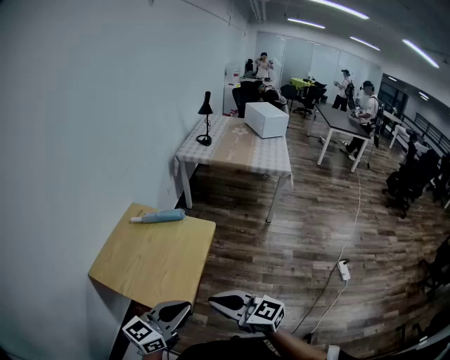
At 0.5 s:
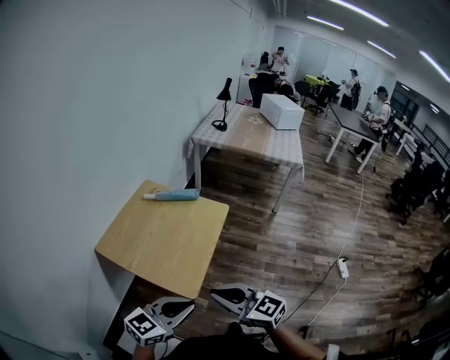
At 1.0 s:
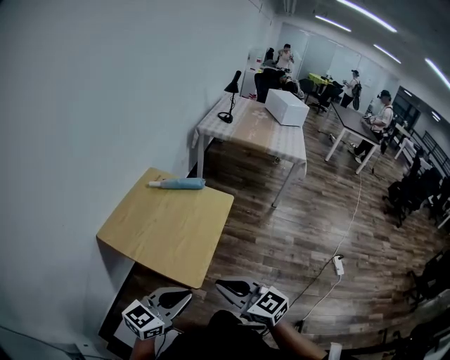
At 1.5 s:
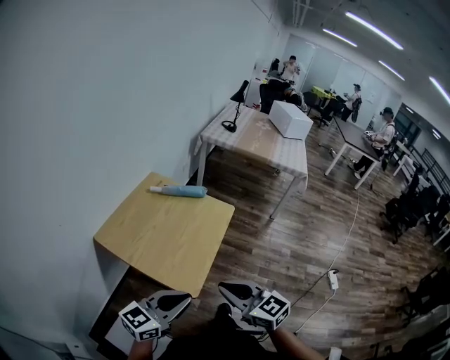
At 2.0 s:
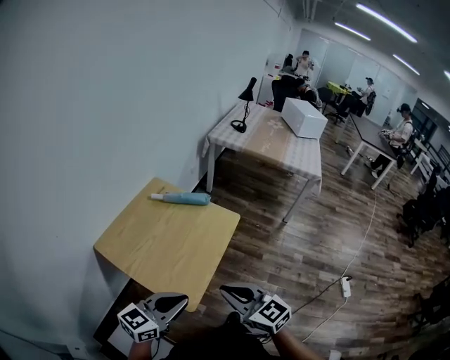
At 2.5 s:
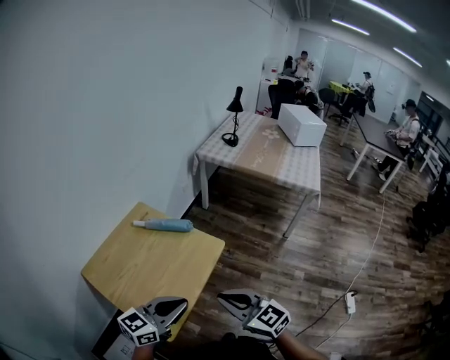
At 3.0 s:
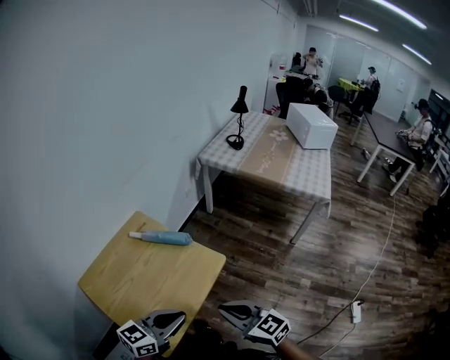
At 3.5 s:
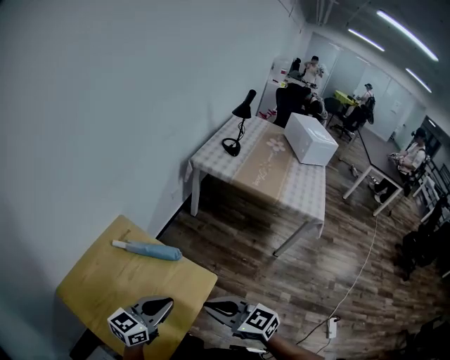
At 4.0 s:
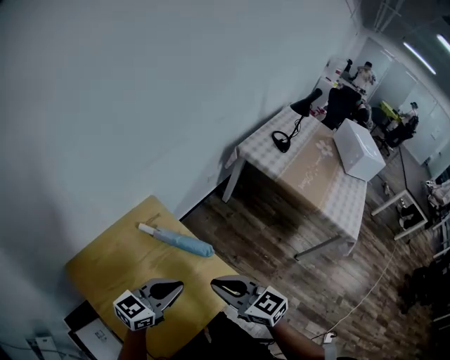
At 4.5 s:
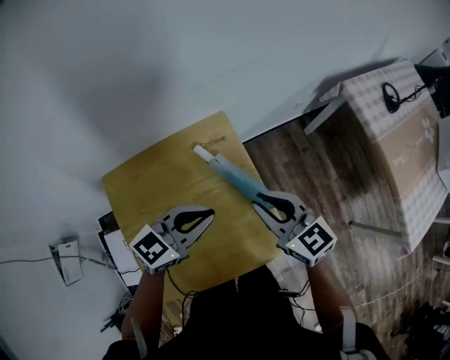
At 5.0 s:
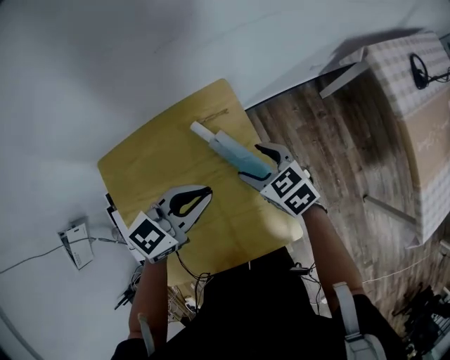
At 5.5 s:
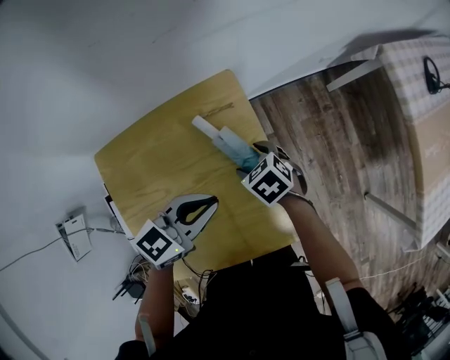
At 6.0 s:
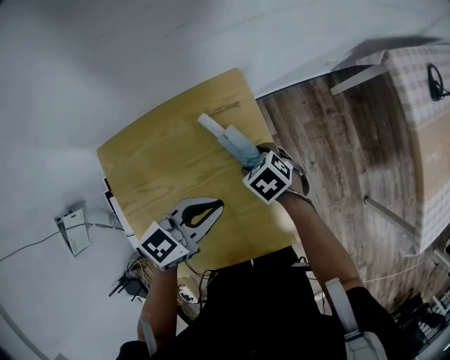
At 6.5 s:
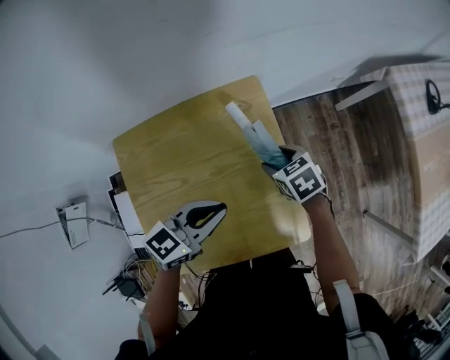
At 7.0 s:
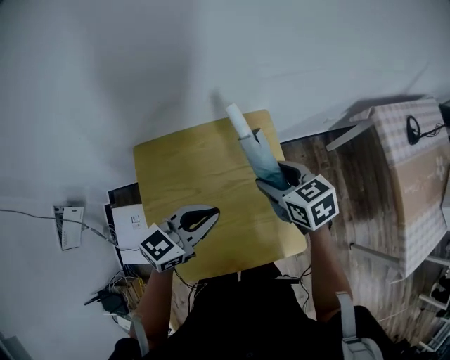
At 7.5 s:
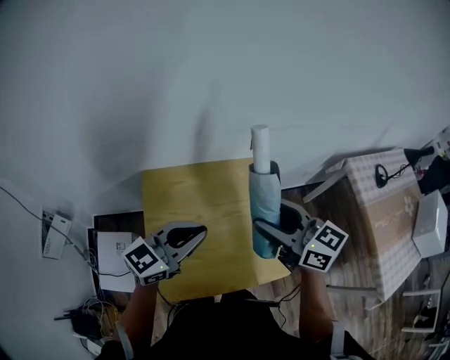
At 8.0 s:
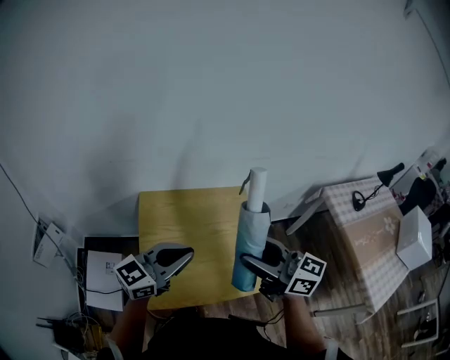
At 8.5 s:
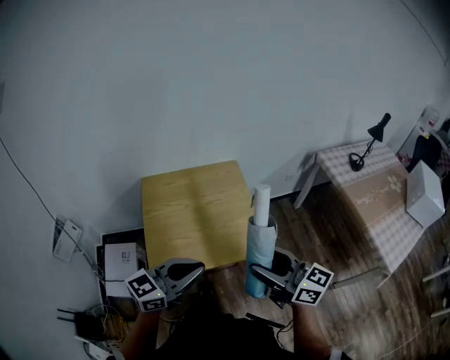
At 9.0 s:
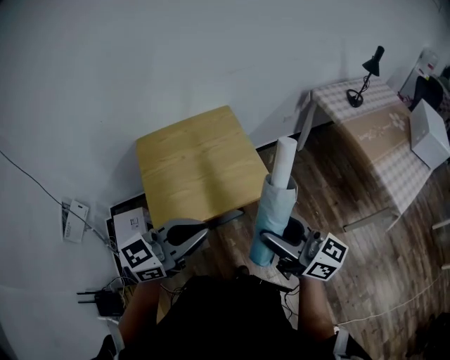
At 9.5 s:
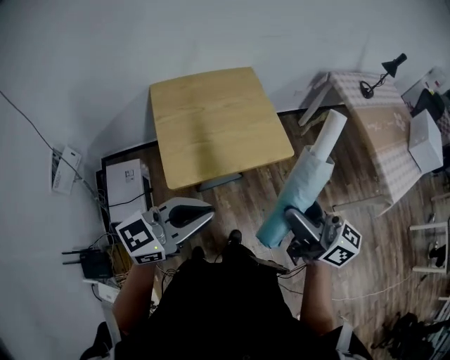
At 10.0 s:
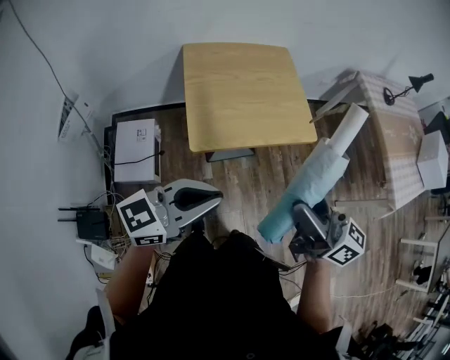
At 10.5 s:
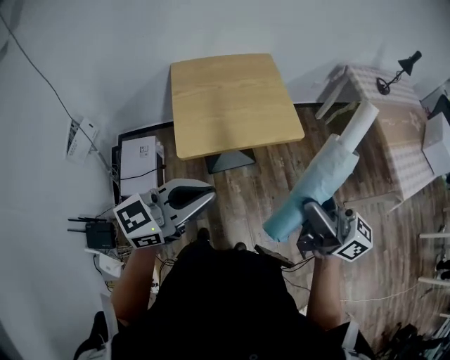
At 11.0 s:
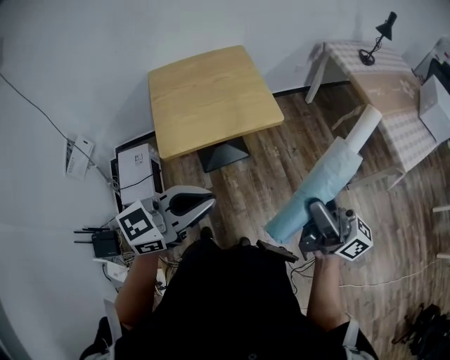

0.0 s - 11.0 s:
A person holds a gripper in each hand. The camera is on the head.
0.0 s - 2.0 s: The left gripper heads to the left and downward, covering about 10 cm, while the right gripper travels forward by some 5 cm.
2.0 s - 3.5 s: The grippers both shift forward by roughly 30 cm.
3.5 s - 5.5 s: The left gripper changes place by some 25 cm, and rotates about 30 degrees. Meanwhile the right gripper ends up about 50 cm from where it was, angles its fingers downward, by roughly 40 degrees, and opens its fingers.
5.5 s - 7.5 s: The right gripper heads upward, covering about 40 cm, and points its fingers approximately 50 degrees further upward. Meanwhile the left gripper moves some 30 cm, and swivels roughly 30 degrees.
7.5 s - 9.0 s: The right gripper goes some 40 cm backward, and turns by about 30 degrees; the left gripper is displaced backward and to the right by approximately 35 cm.
9.0 s - 11.0 s: The grippers both shift backward by approximately 20 cm. The right gripper travels to the left and back again, some 15 cm each way, and changes its angle by about 20 degrees.

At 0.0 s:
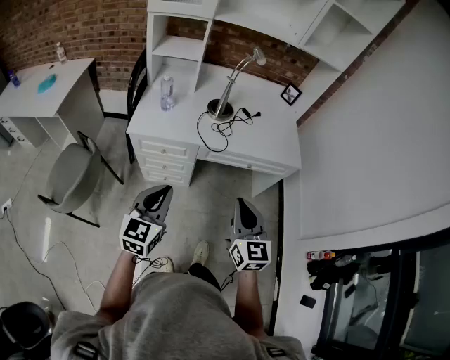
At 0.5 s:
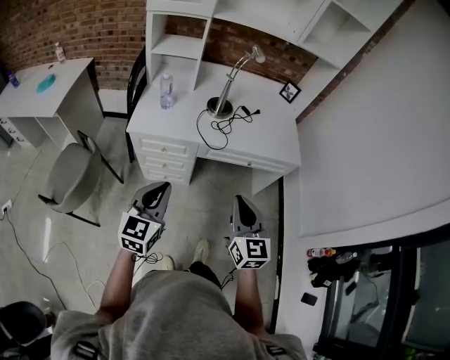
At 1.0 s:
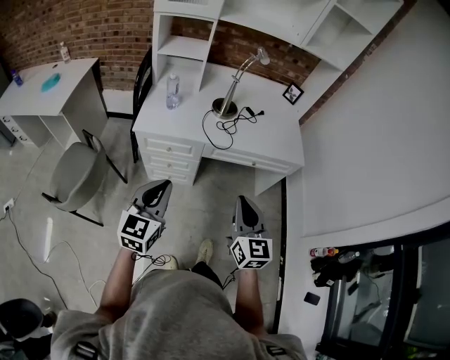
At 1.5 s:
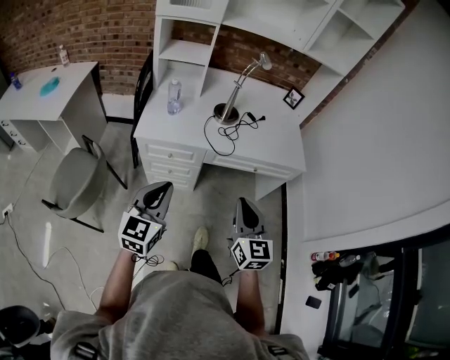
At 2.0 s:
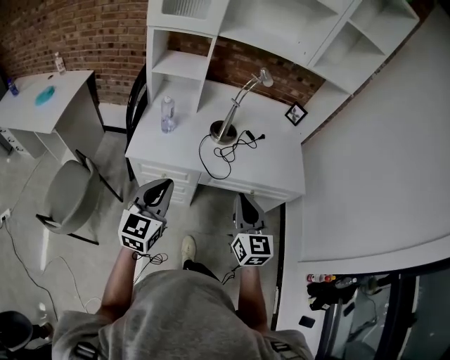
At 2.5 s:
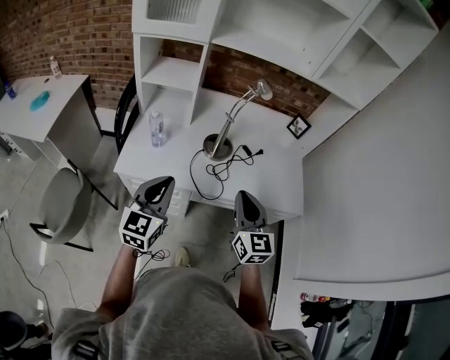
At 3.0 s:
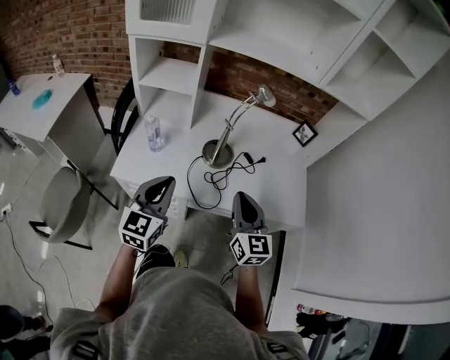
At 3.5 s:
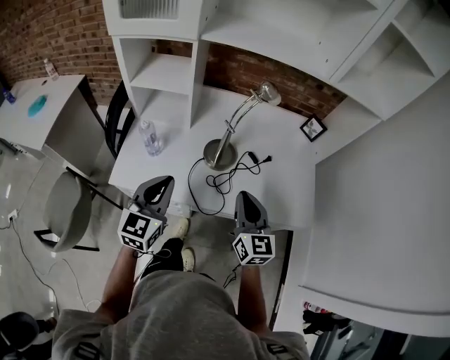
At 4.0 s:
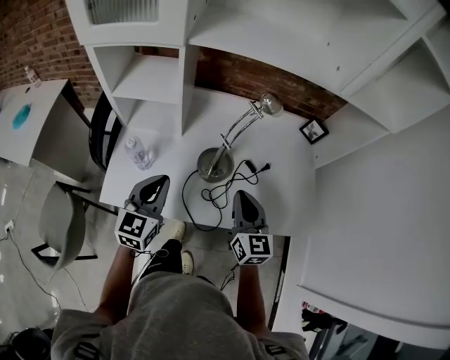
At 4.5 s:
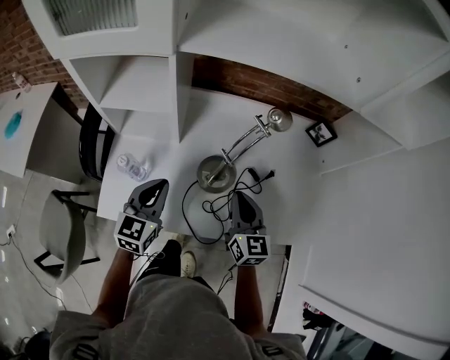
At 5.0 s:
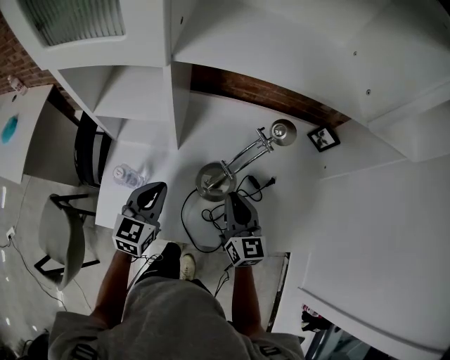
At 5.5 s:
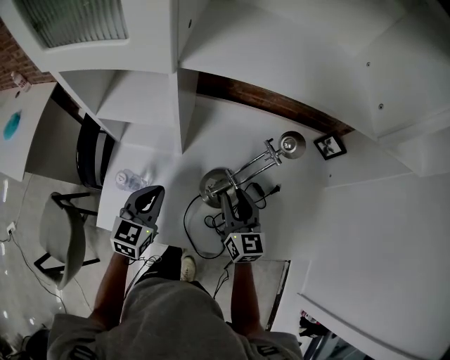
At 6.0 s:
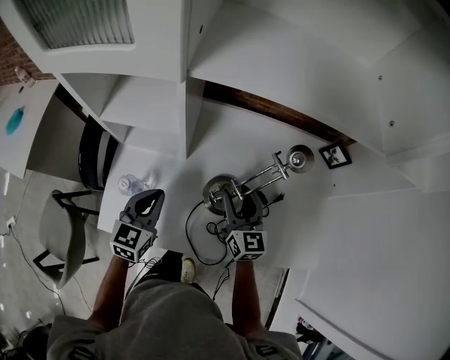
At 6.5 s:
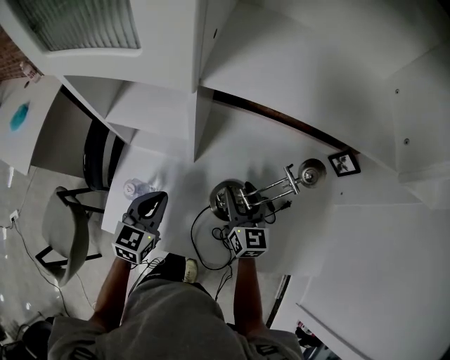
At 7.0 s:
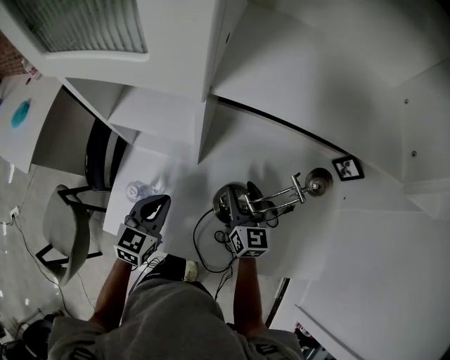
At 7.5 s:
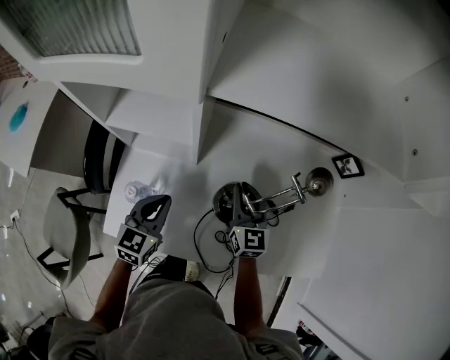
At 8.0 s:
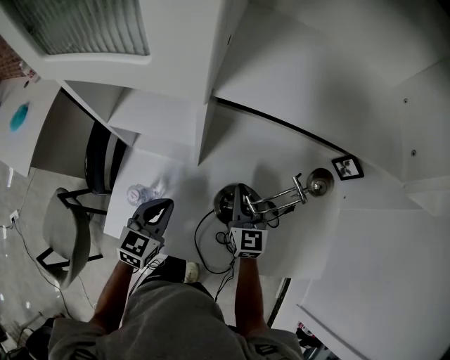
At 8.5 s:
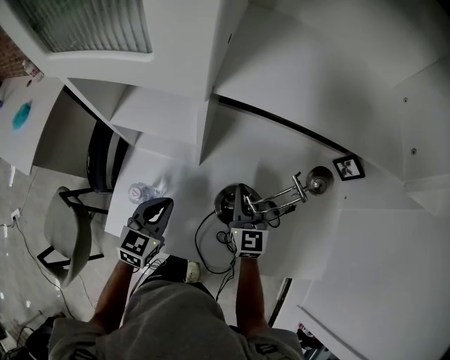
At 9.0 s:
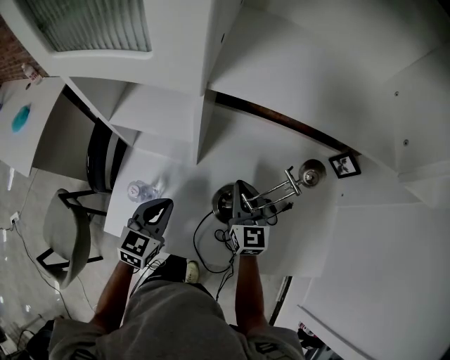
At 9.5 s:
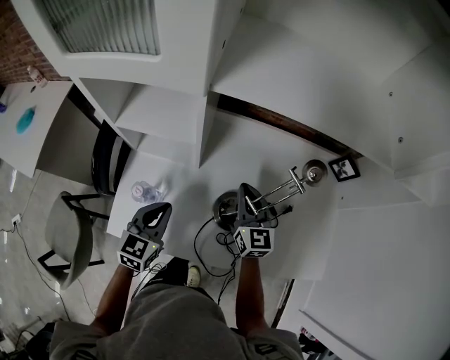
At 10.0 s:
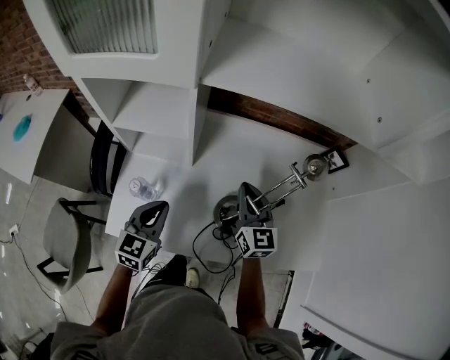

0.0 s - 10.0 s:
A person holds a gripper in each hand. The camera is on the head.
0.0 s - 2.0 s: Both grippers travel together forward, about 15 cm.
2.0 s - 4.0 s: The two grippers go roughly 30 cm forward.
4.0 s - 6.0 s: Both grippers travel together forward and downward, about 15 cm. The right gripper opens its fingers.
6.0 s - 8.0 s: The right gripper changes place by some 5 cm, and closes up.
8.0 s - 10.0 s: The left gripper ends up some 5 cm from where it was. Meanwhile the right gripper heads upward, covering about 5 cm.

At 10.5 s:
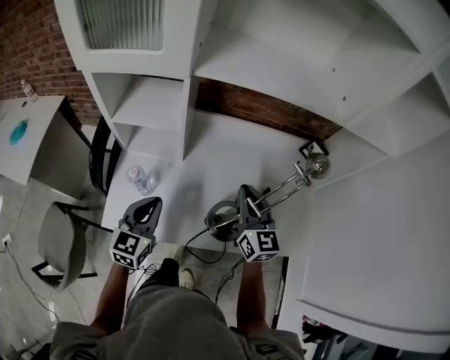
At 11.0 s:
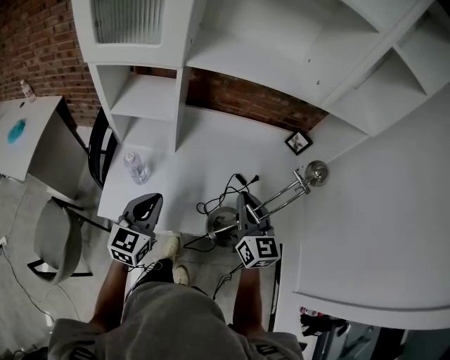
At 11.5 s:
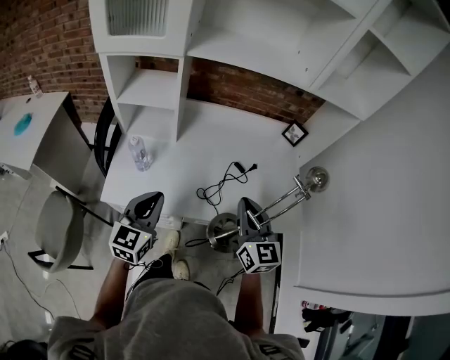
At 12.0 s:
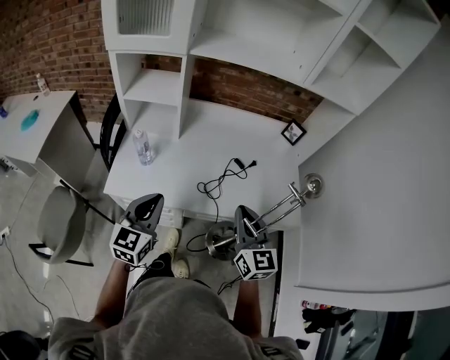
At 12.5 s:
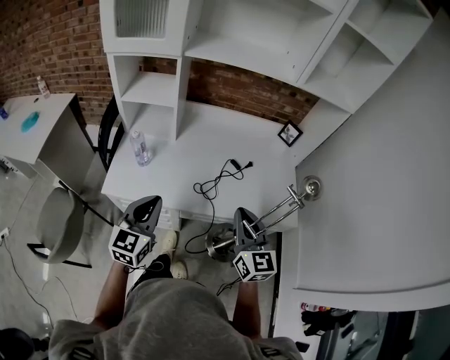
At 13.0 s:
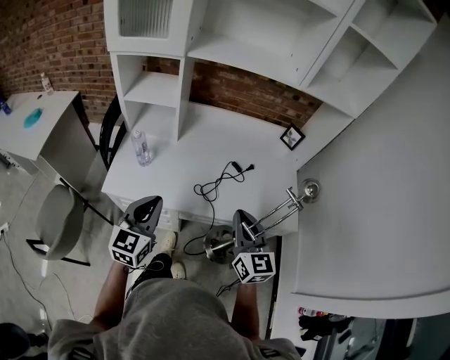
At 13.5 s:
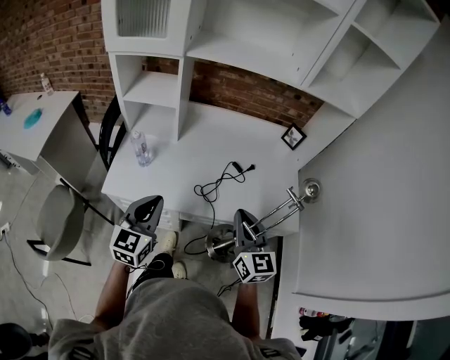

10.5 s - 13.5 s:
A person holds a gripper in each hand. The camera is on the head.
10.5 s - 12.0 s: Both grippers travel together backward, roughly 20 cm.
12.0 s - 13.5 s: There are only small adjustments of the grippers.

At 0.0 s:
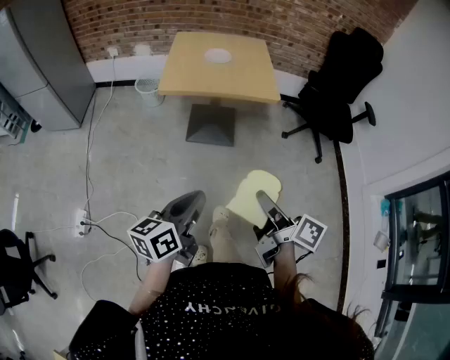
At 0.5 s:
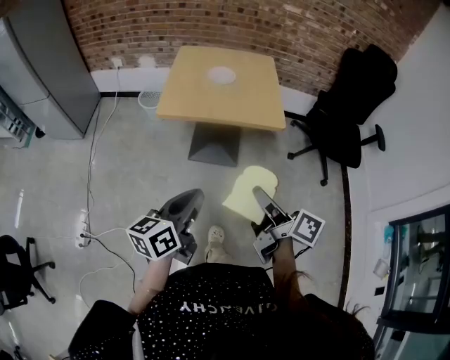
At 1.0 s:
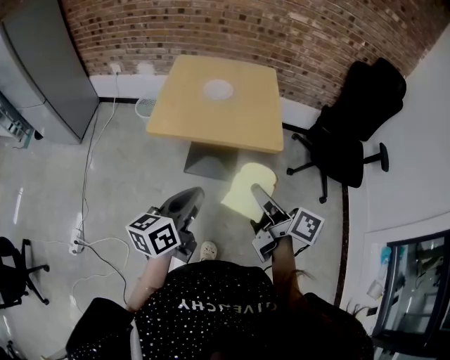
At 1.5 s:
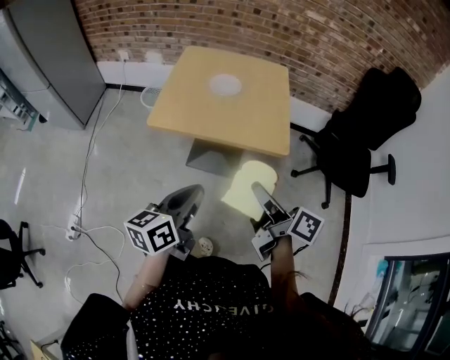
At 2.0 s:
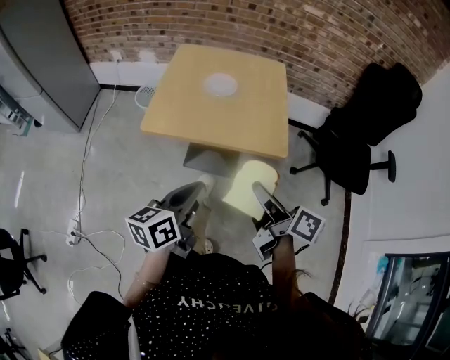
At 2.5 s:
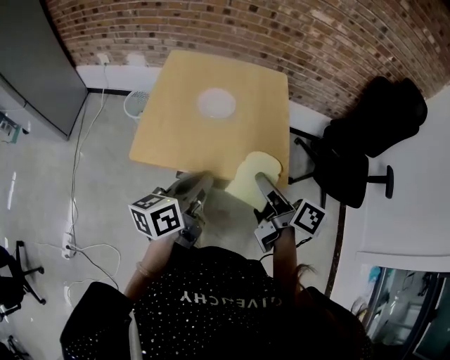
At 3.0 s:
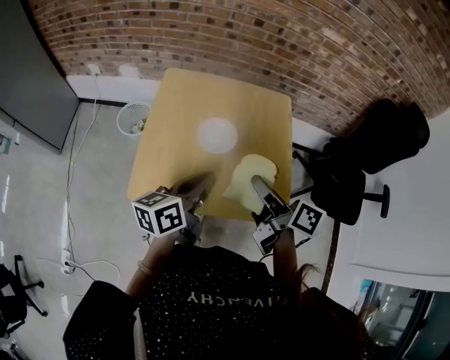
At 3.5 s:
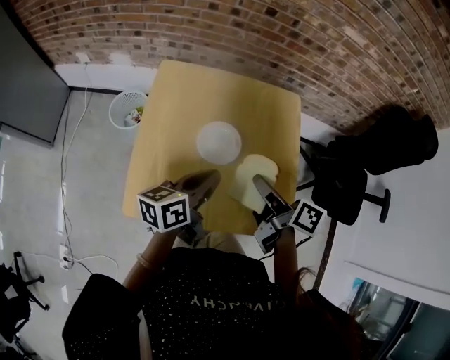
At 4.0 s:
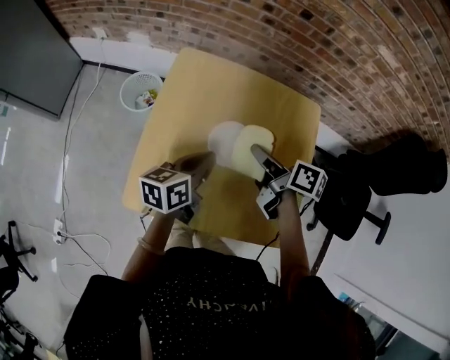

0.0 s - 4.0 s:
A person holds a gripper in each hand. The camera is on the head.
0.0 s - 2.0 s: The two grippers go approximately 35 cm forward.
2.0 s - 4.0 s: Both grippers are carried forward, approximately 50 cm. The right gripper turns by approximately 20 degrees.
